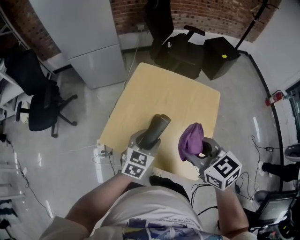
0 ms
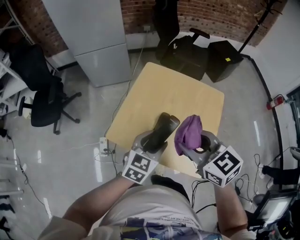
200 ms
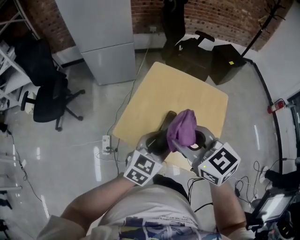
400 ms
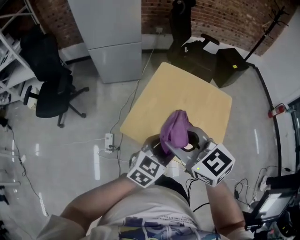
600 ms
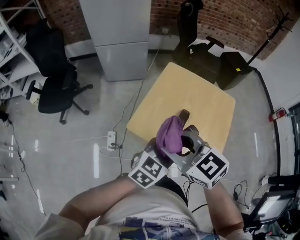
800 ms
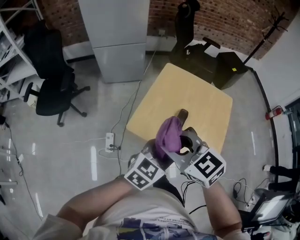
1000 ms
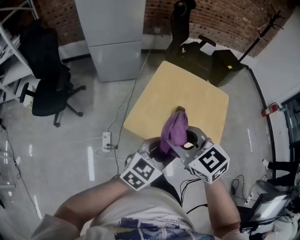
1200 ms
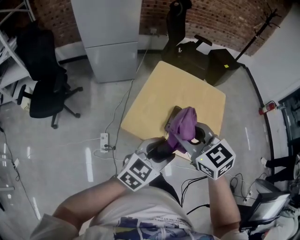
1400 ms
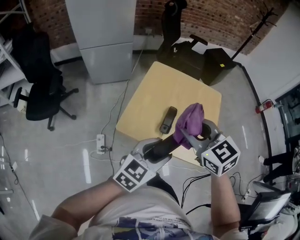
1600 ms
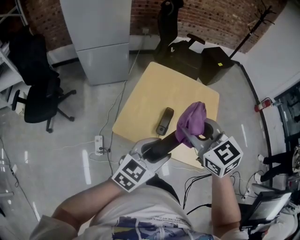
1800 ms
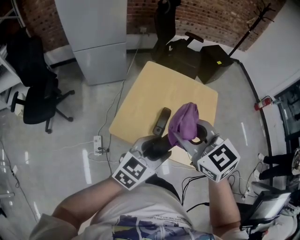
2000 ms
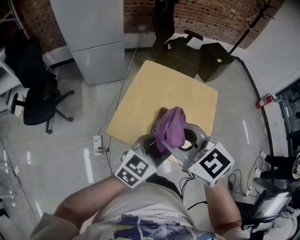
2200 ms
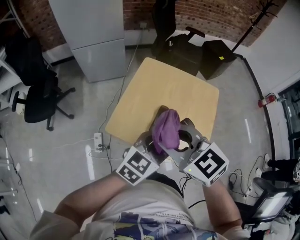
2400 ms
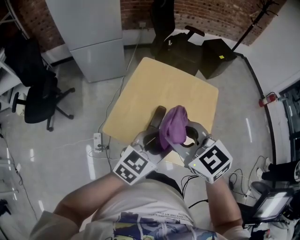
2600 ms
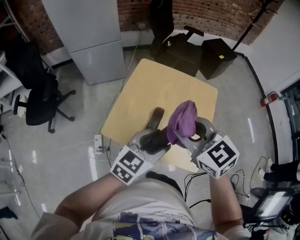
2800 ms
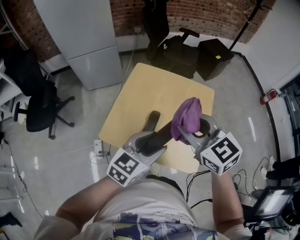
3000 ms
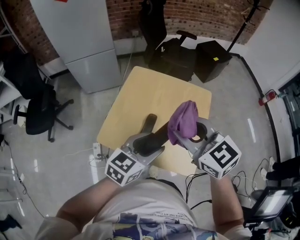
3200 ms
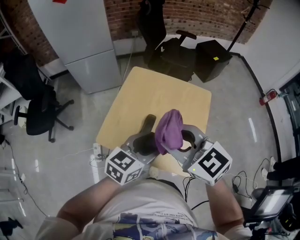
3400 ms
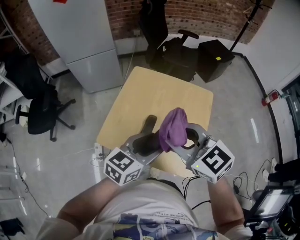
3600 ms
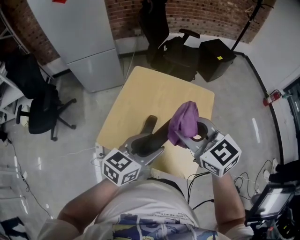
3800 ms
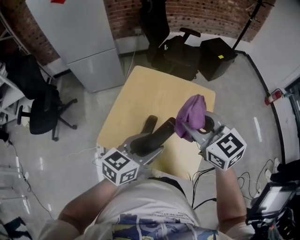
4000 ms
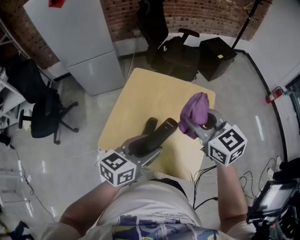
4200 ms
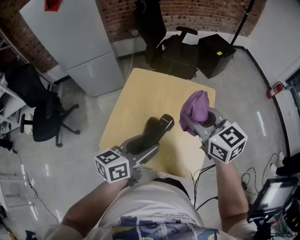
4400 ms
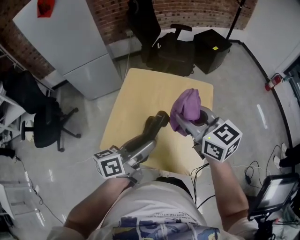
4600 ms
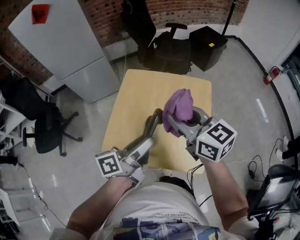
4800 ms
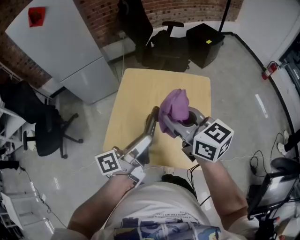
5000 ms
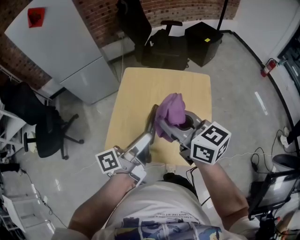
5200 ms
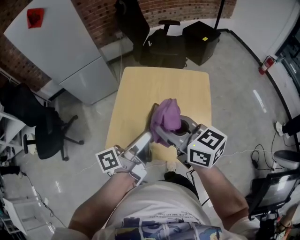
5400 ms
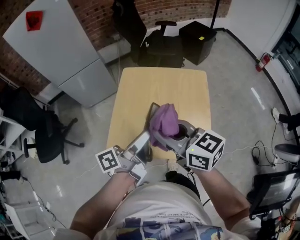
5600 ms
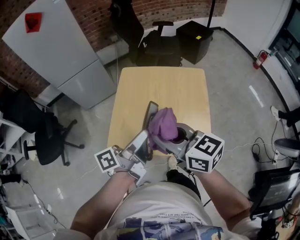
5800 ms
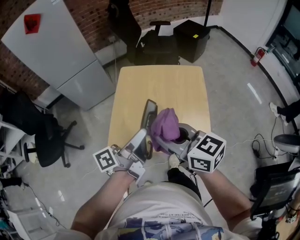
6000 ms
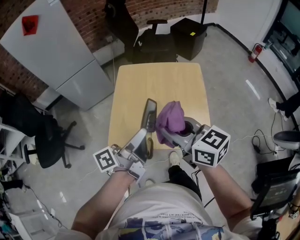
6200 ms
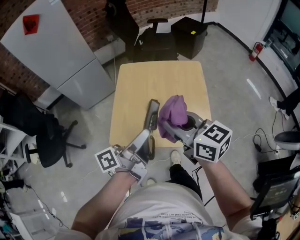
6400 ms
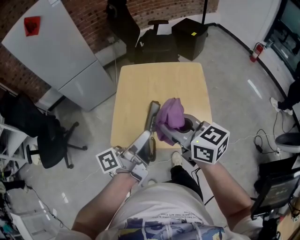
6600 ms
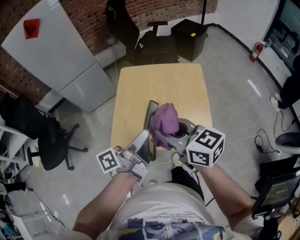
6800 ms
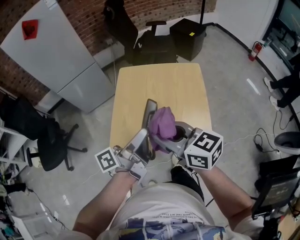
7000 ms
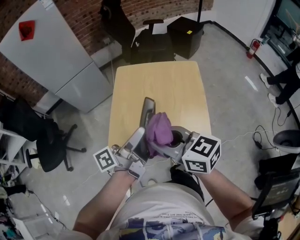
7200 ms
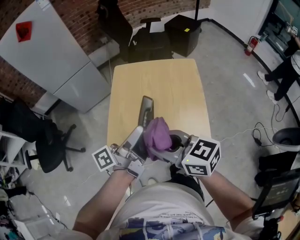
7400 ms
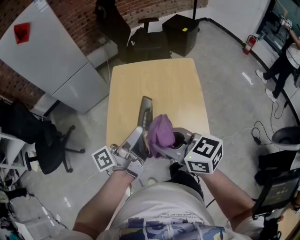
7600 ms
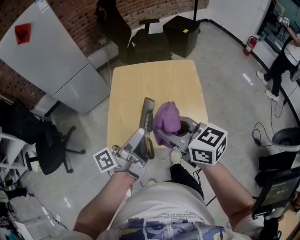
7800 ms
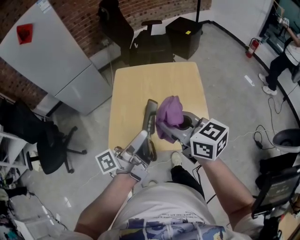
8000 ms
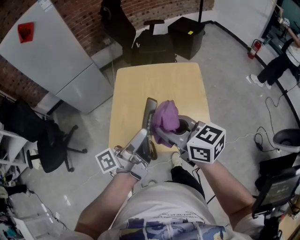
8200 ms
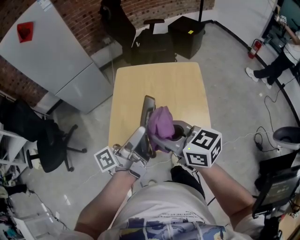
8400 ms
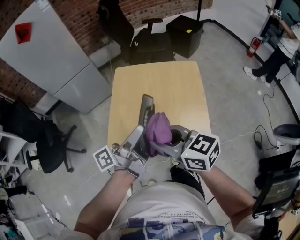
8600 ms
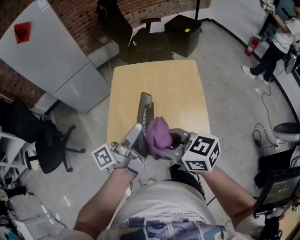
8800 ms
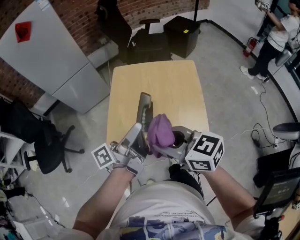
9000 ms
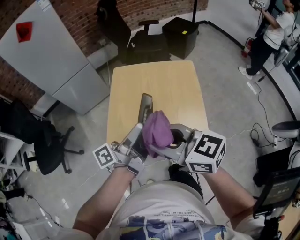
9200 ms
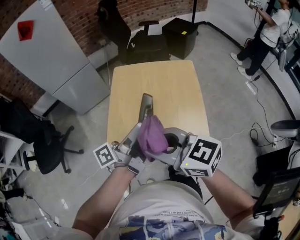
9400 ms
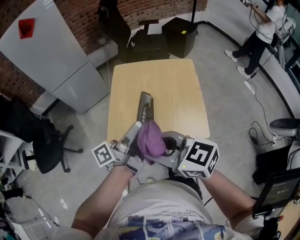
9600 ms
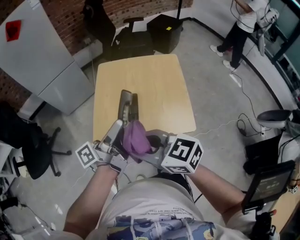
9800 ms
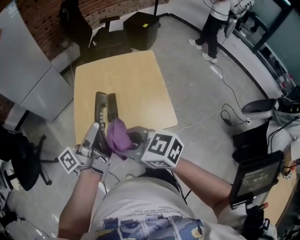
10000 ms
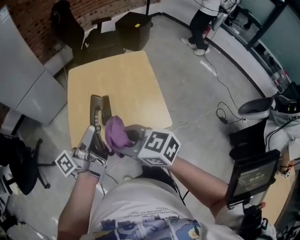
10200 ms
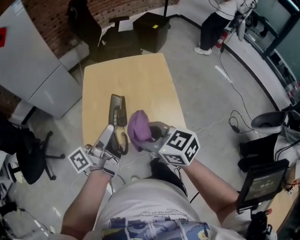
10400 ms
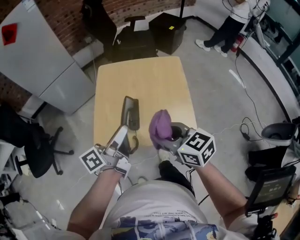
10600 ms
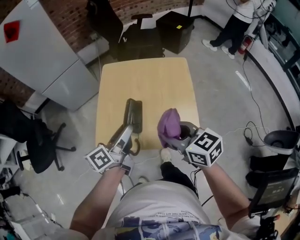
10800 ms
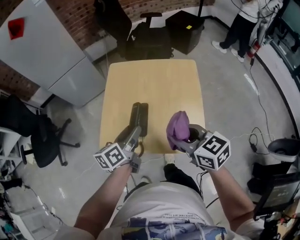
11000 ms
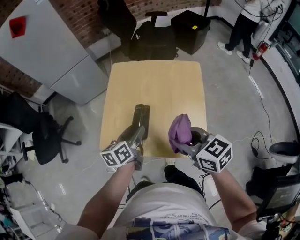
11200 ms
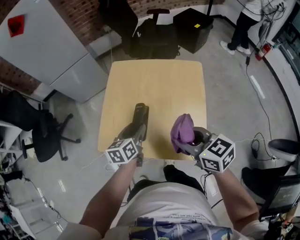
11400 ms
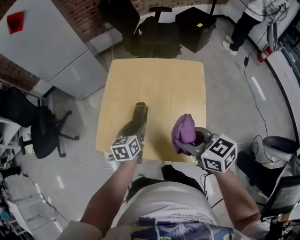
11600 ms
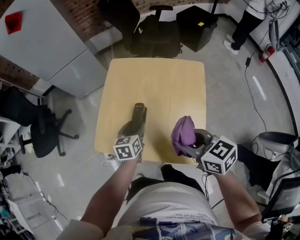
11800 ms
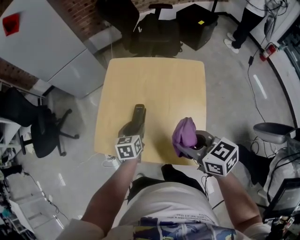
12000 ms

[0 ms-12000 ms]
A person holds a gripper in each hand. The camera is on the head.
0 ms to 1600 ms: The right gripper goes about 15 cm to the left and upward. The left gripper travels backward, upward and to the left by roughly 15 cm, and changes its angle by some 20 degrees.
1600 ms to 3000 ms: The left gripper goes approximately 10 cm forward and to the right. Meanwhile the right gripper is displaced to the right by some 10 cm.
3000 ms to 4400 ms: The right gripper goes approximately 10 cm forward and to the right; the left gripper swivels approximately 30 degrees.
4400 ms to 6000 ms: The left gripper moves to the left, about 5 cm, and turns by about 40 degrees. Meanwhile the right gripper goes some 20 cm backward and to the left.
6000 ms to 7600 ms: The grippers make only small movements.
9000 ms to 10400 ms: The right gripper reaches roughly 5 cm to the left, then returns.
10400 ms to 12000 ms: The right gripper travels to the right and forward by about 15 cm, while the left gripper goes about 25 cm downward and forward, and points its fingers approximately 60 degrees further downward.

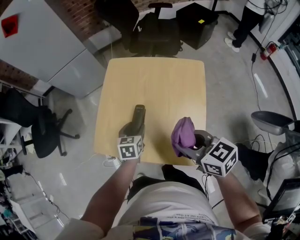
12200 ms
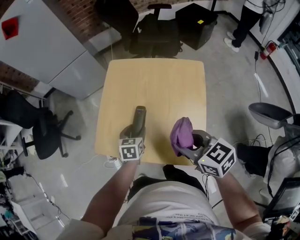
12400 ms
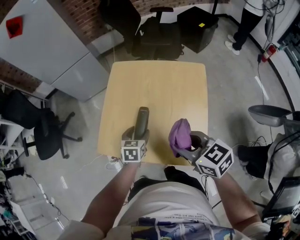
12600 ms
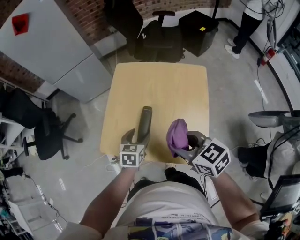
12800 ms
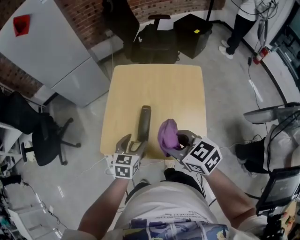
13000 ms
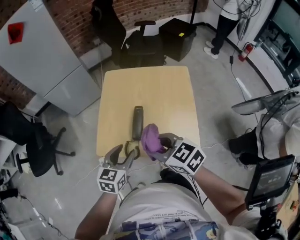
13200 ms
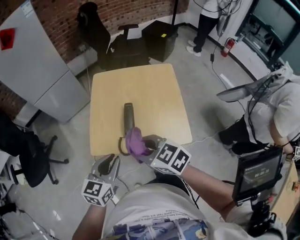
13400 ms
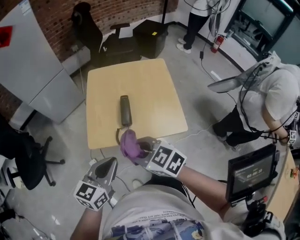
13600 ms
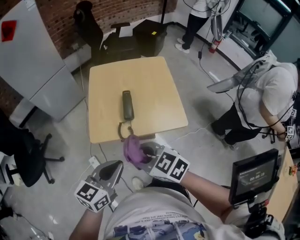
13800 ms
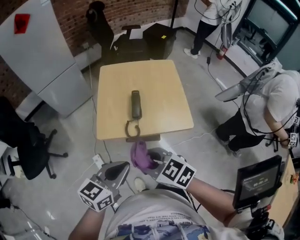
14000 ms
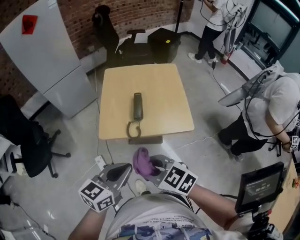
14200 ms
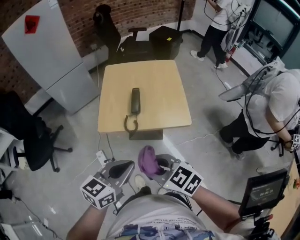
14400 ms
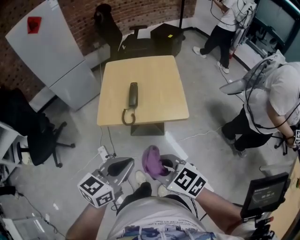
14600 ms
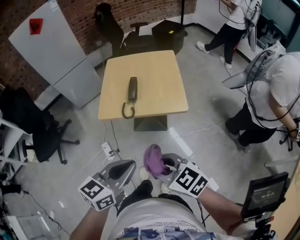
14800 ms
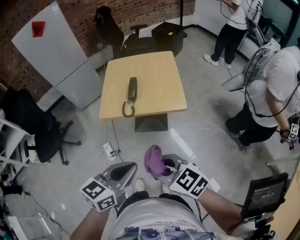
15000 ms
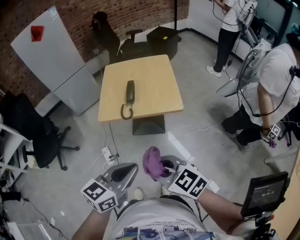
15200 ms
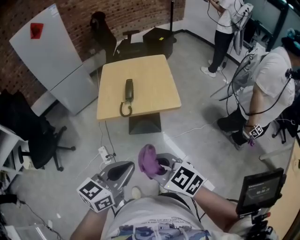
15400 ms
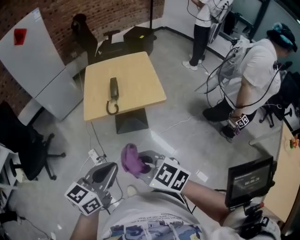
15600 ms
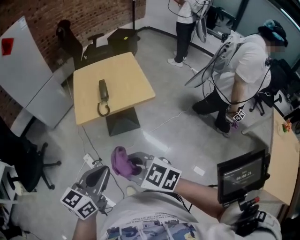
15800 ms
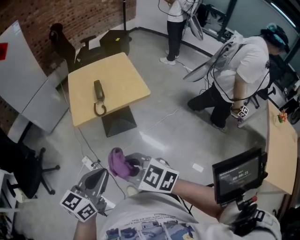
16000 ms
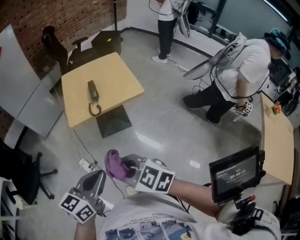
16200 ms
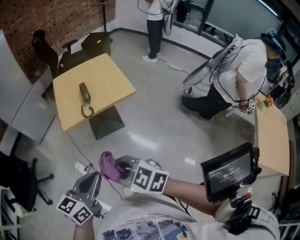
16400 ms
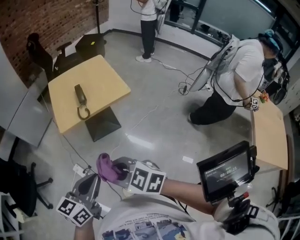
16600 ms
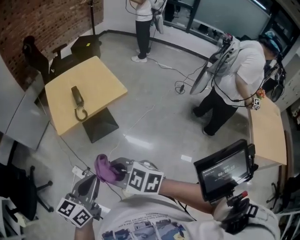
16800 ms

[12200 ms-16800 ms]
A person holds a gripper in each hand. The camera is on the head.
12200 ms to 13800 ms: The right gripper moves to the left and backward, about 30 cm. The left gripper travels backward, upward and to the left by some 35 cm, swivels some 50 degrees, and closes.
13800 ms to 15200 ms: Both grippers travel together backward, roughly 20 cm.
15200 ms to 16800 ms: The two grippers go some 10 cm to the left.

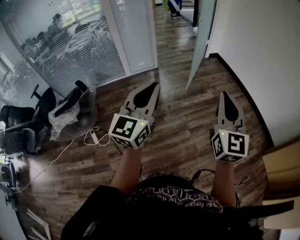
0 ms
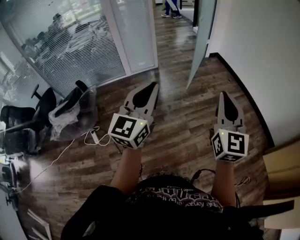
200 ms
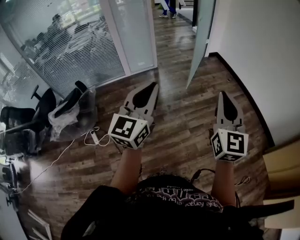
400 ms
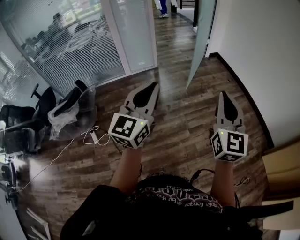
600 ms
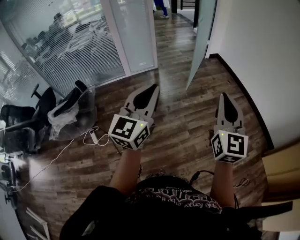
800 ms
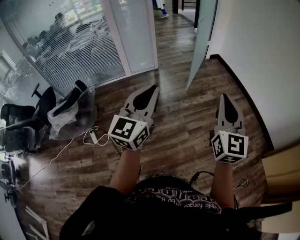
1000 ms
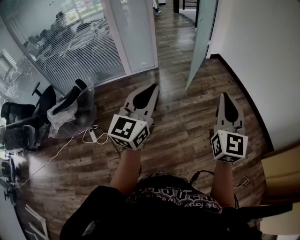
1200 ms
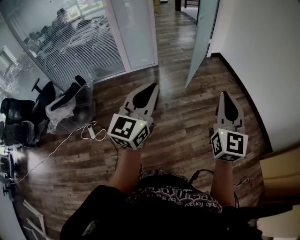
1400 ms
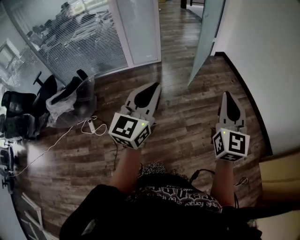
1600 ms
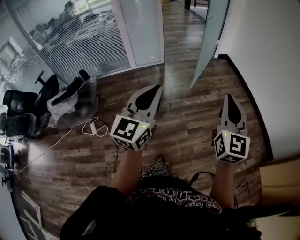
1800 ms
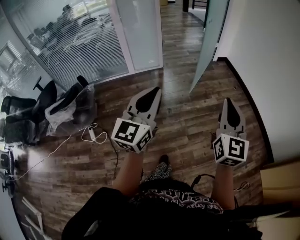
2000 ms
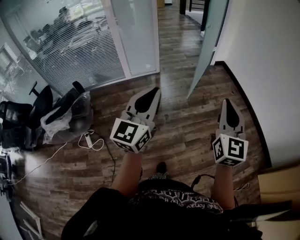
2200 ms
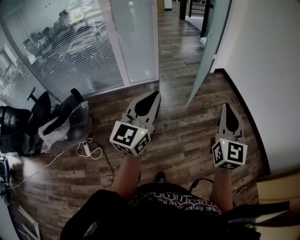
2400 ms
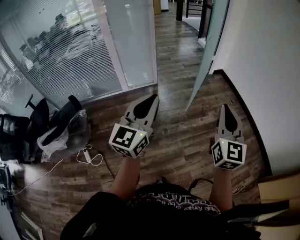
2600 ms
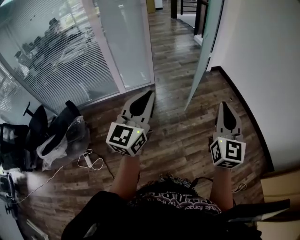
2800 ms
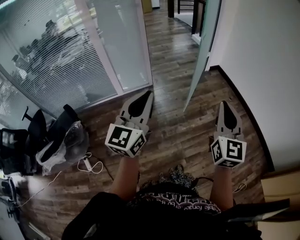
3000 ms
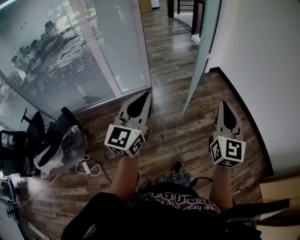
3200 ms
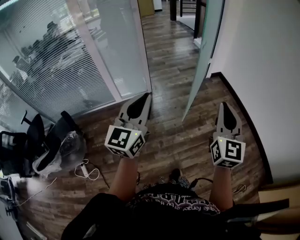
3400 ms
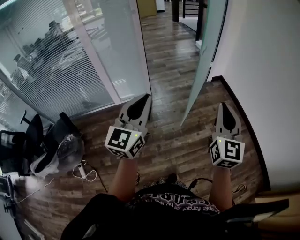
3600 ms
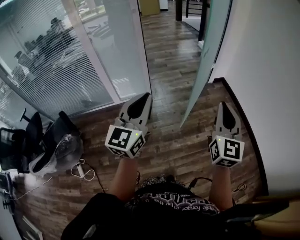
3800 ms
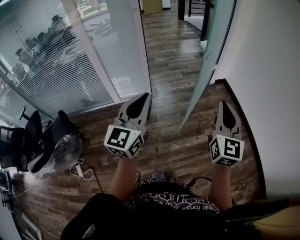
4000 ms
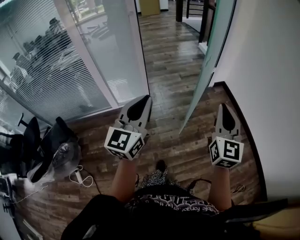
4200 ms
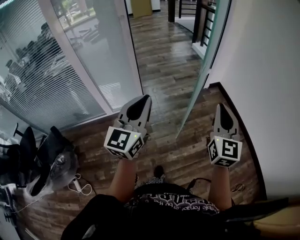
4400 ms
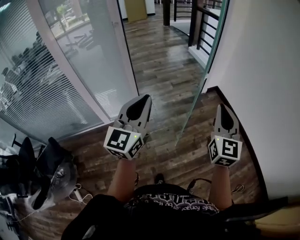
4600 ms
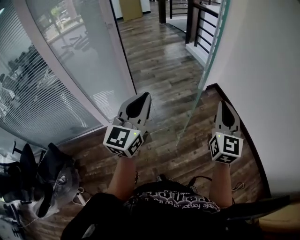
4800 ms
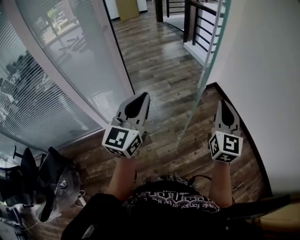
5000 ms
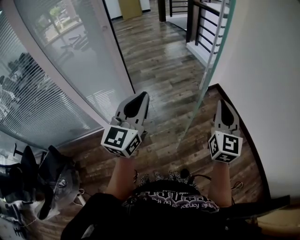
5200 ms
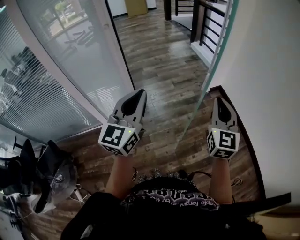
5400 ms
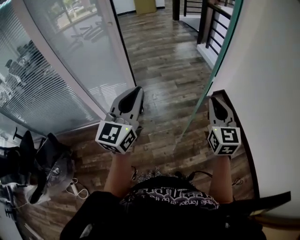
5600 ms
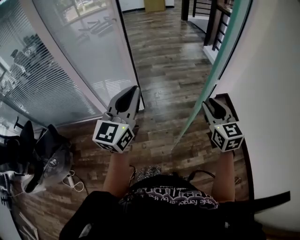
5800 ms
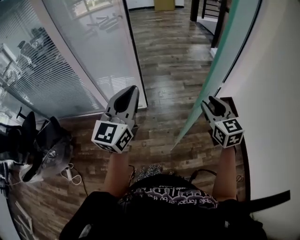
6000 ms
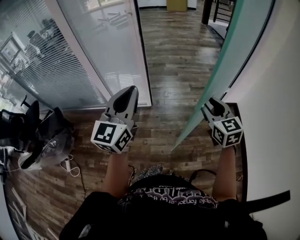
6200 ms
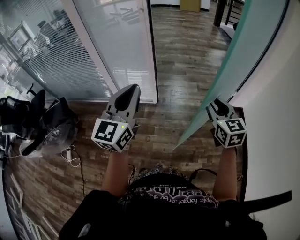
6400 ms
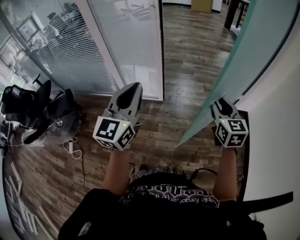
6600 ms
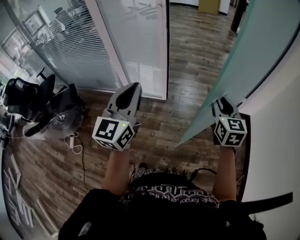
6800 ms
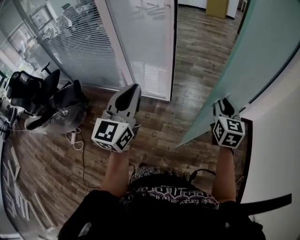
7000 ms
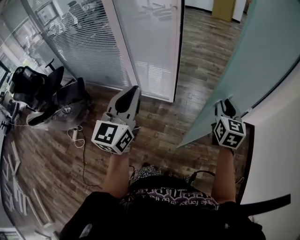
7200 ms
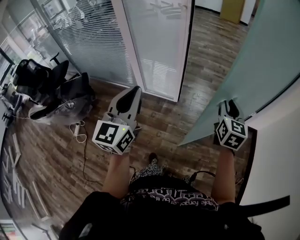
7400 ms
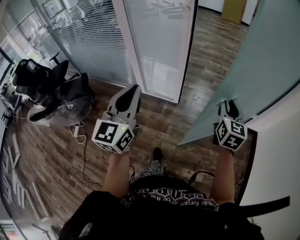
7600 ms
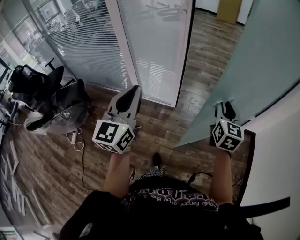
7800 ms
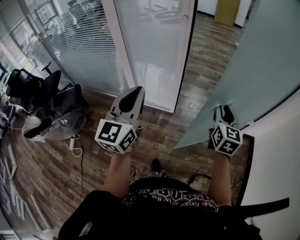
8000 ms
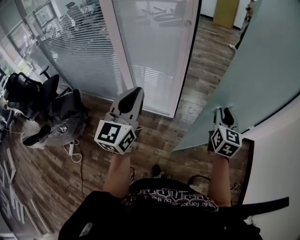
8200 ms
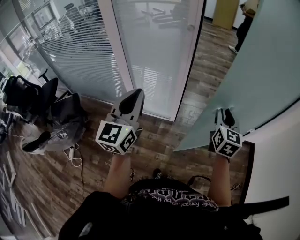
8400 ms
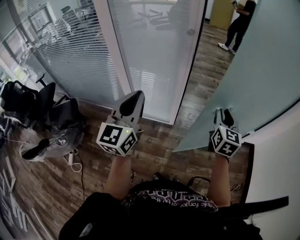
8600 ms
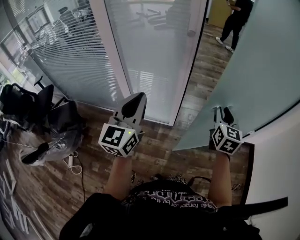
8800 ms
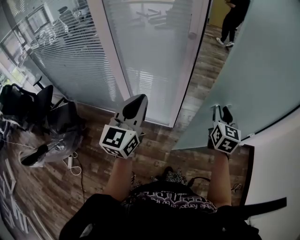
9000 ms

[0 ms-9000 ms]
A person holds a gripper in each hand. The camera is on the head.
0 ms to 1600 ms: Both grippers travel together to the right, about 5 cm.
1600 ms to 3000 ms: Both grippers travel together forward, some 30 cm.
3000 ms to 4400 ms: The grippers both shift forward by roughly 35 cm.
4400 ms to 6000 ms: The right gripper changes place by roughly 25 cm, swivels about 40 degrees, and opens, while the left gripper changes place by some 15 cm.
6000 ms to 7600 ms: The left gripper shifts approximately 10 cm to the left, and turns by some 30 degrees. Meanwhile the right gripper shifts approximately 10 cm forward and to the left.
7600 ms to 9000 ms: The right gripper goes about 20 cm forward and to the left. Meanwhile the left gripper shifts roughly 25 cm forward.
